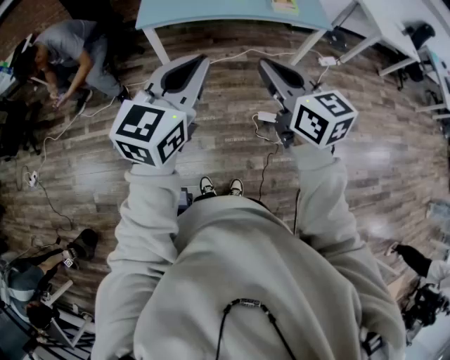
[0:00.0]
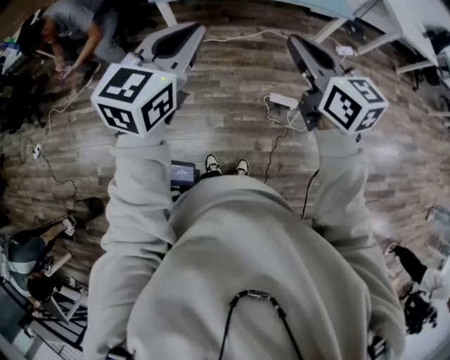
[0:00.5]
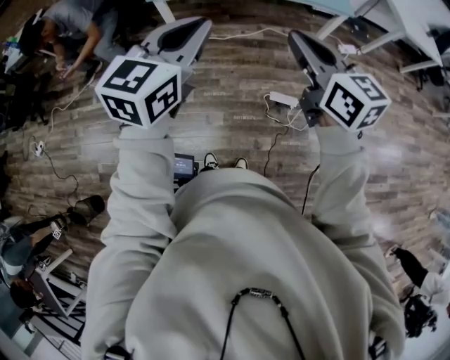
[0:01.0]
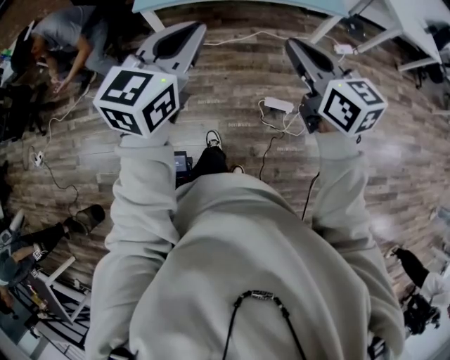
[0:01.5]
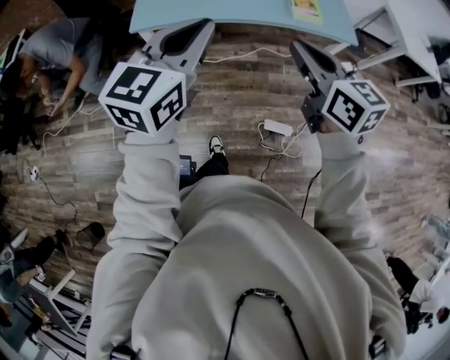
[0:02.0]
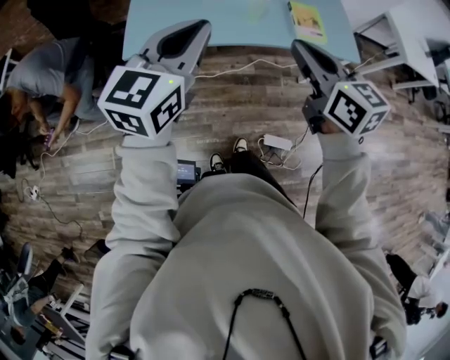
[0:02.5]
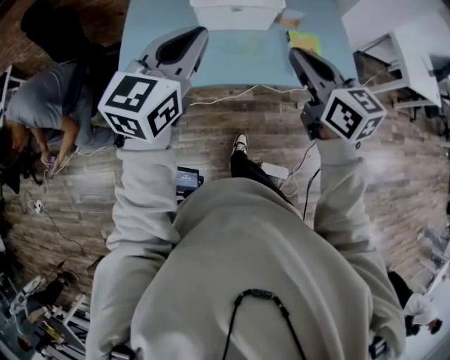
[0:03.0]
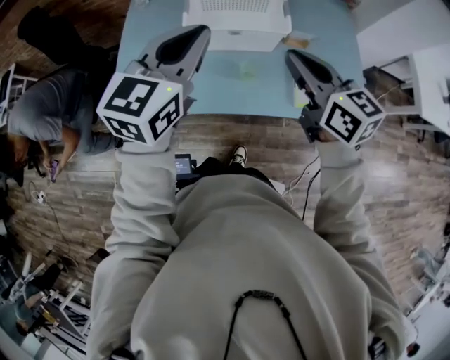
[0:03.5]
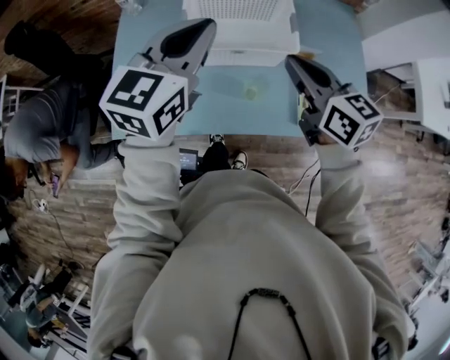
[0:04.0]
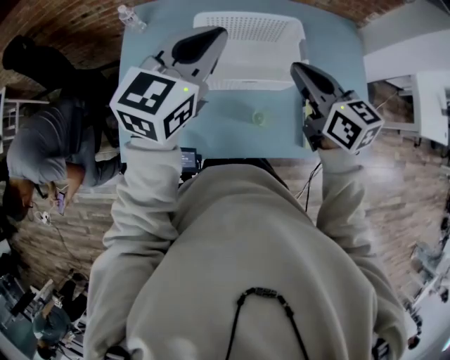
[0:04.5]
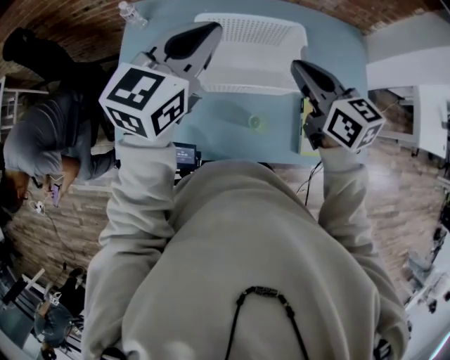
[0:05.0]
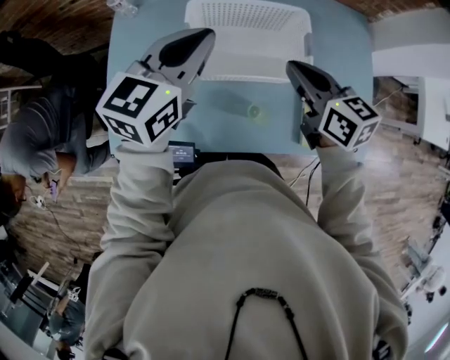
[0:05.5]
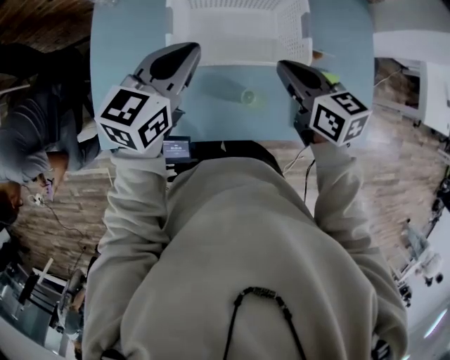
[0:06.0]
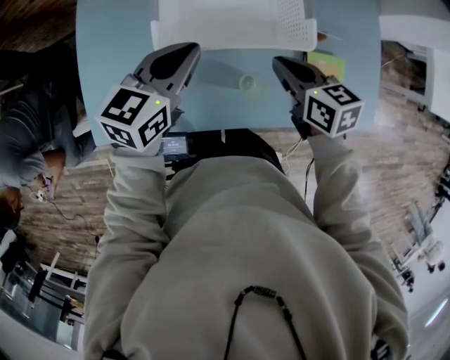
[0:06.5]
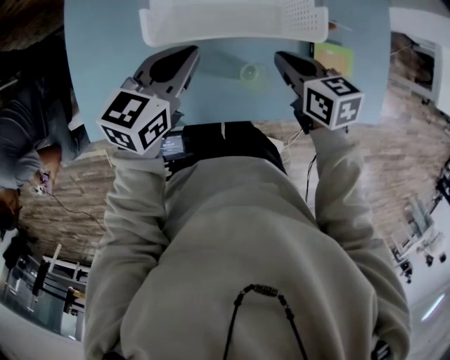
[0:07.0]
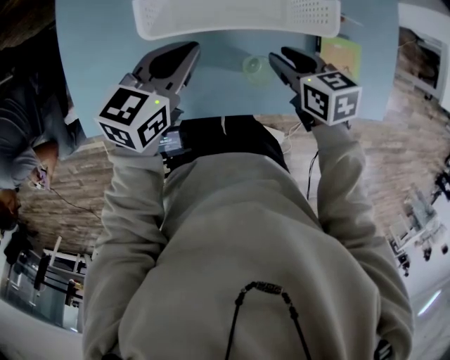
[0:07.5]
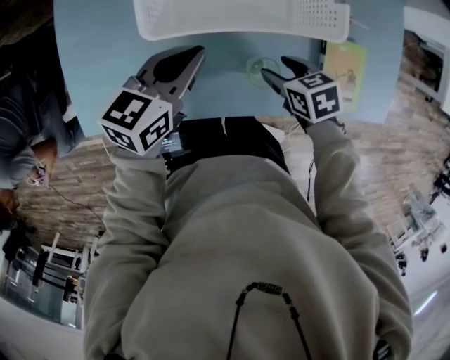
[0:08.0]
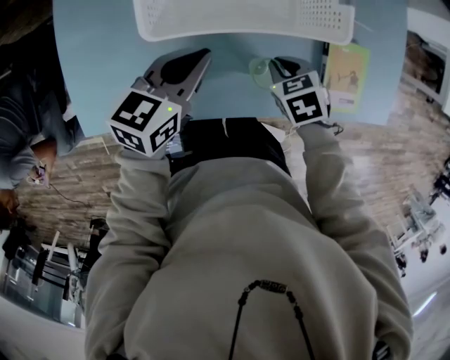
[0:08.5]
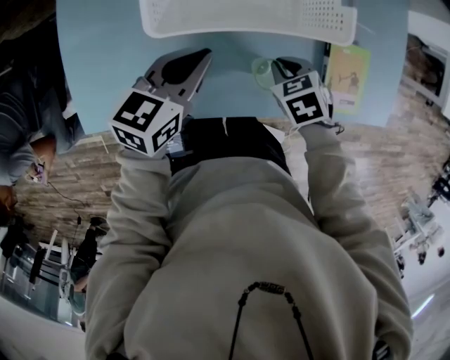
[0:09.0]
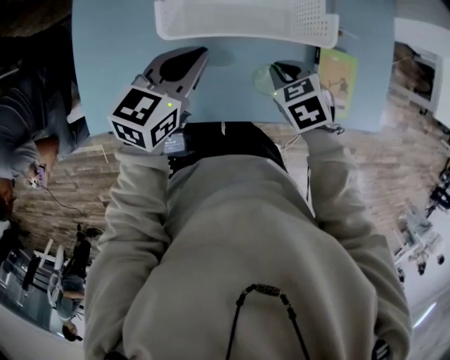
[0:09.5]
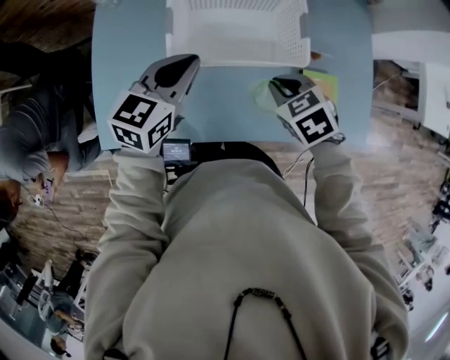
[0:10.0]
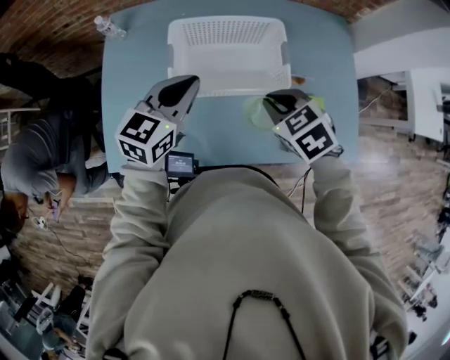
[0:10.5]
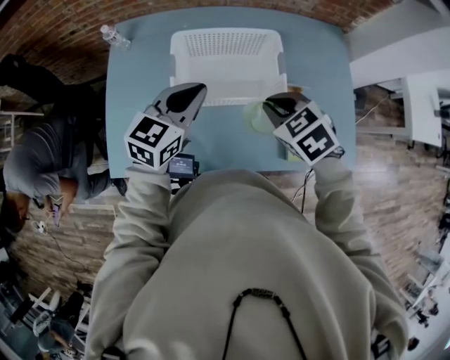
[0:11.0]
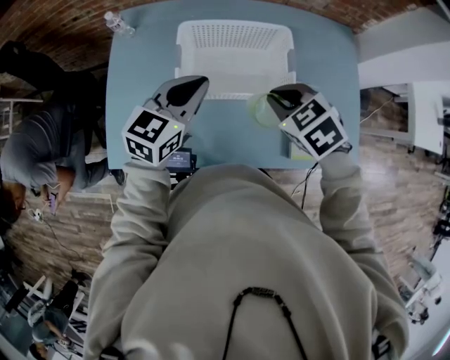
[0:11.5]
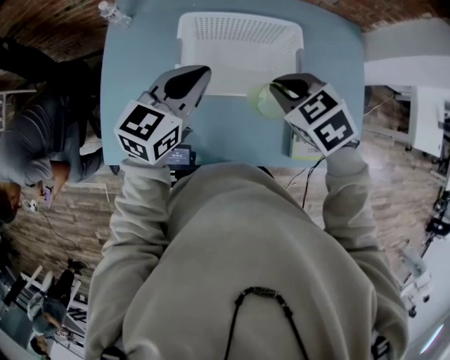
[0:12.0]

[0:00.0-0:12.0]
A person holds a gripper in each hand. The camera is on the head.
0:00.0 to 0:02.0: Both grippers travel together forward, some 25 cm.
0:02.0 to 0:04.0: The pair of grippers is taken forward, roughly 60 cm.
0:04.0 to 0:06.0: The two grippers go some 15 cm downward and forward.
0:06.0 to 0:08.0: The left gripper shifts about 15 cm downward. The right gripper moves downward, about 20 cm, rotates approximately 30 degrees, and opens its fingers.
0:08.0 to 0:10.0: The grippers both shift upward by approximately 15 cm. The right gripper rotates roughly 30 degrees, and closes.
0:10.0 to 0:12.0: Both grippers move upward, roughly 10 cm.

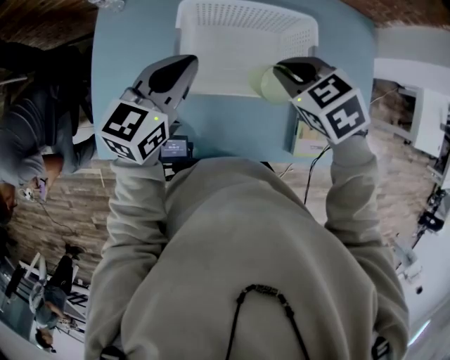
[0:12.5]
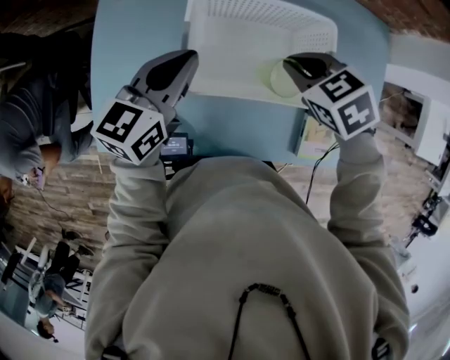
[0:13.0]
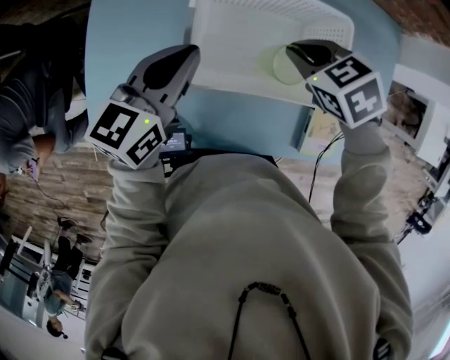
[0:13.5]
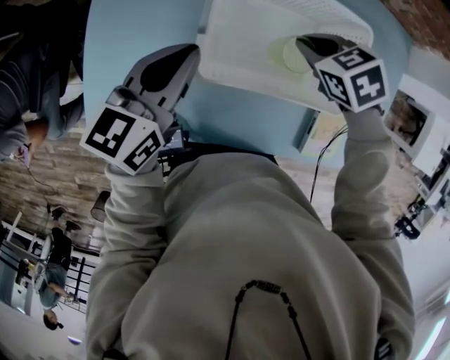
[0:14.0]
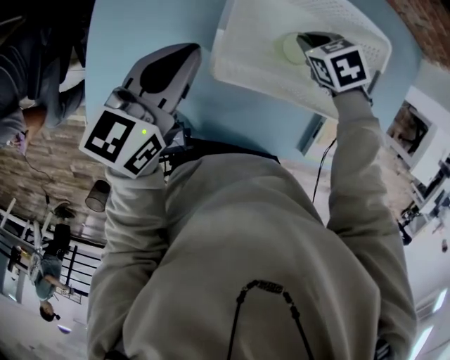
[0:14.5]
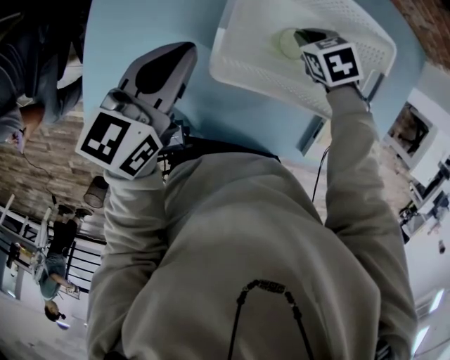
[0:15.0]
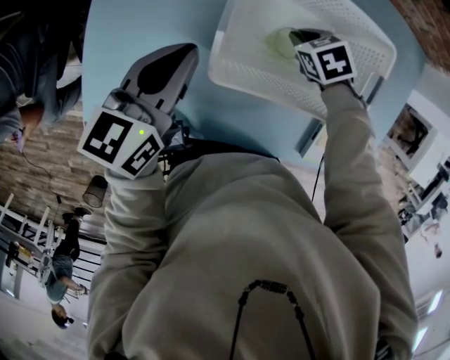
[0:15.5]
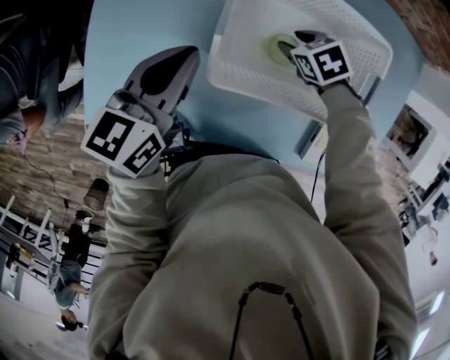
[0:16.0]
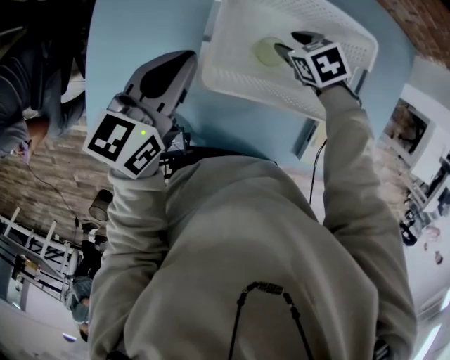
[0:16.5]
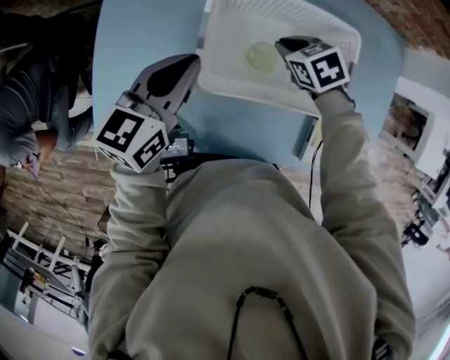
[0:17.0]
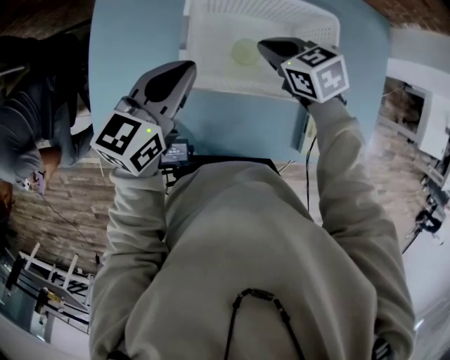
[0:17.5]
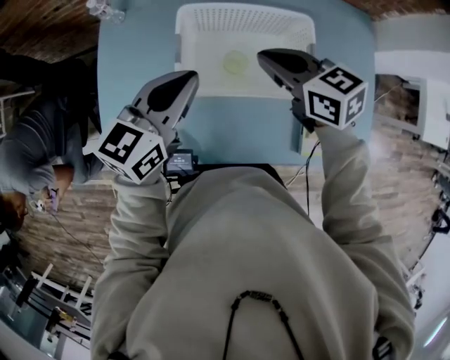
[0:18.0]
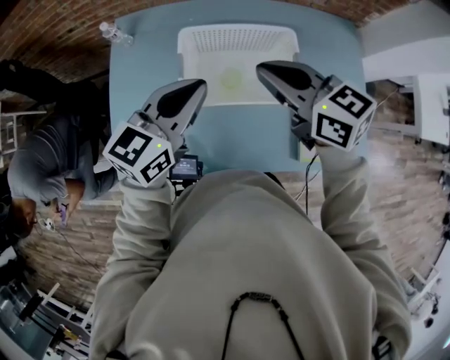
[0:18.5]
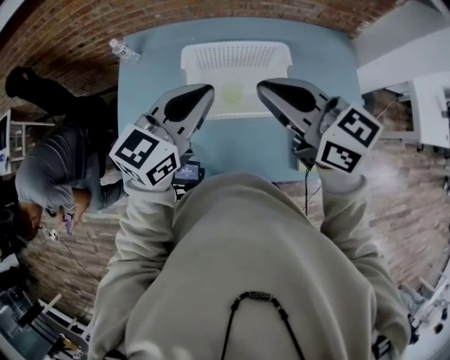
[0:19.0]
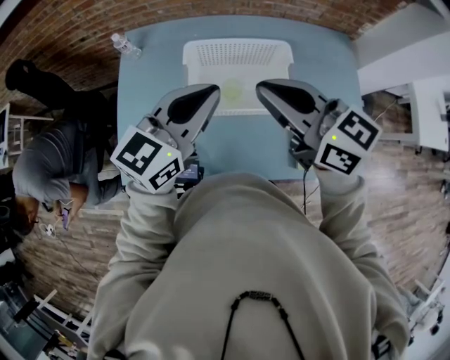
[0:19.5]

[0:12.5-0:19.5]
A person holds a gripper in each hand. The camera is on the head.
0:12.5 to 0:14.5: The right gripper travels downward by some 20 cm, while the left gripper shifts some 10 cm to the left and downward.
0:14.5 to 0:16.0: The right gripper opens.
0:16.0 to 0:17.5: The left gripper shifts by some 5 cm. Meanwhile the right gripper moves upward, approximately 15 cm, swivels about 30 degrees, and closes.
0:17.5 to 0:19.5: The left gripper goes roughly 20 cm upward, backward and to the right, and changes its angle by approximately 20 degrees. Meanwhile the right gripper shifts about 35 cm upward and backward, and tilts its fingers some 40 degrees upward.

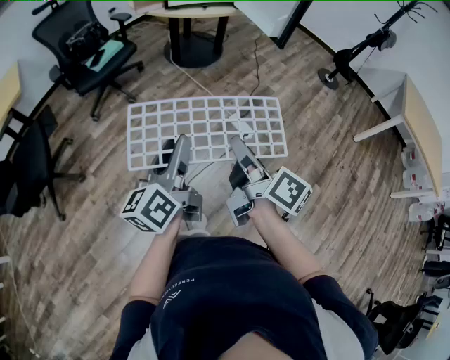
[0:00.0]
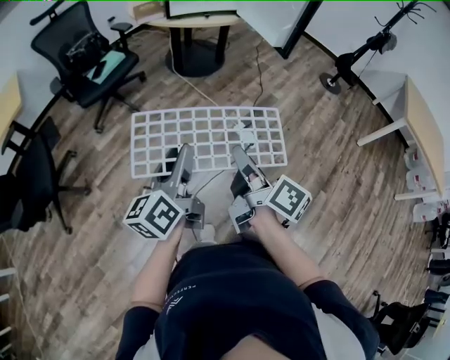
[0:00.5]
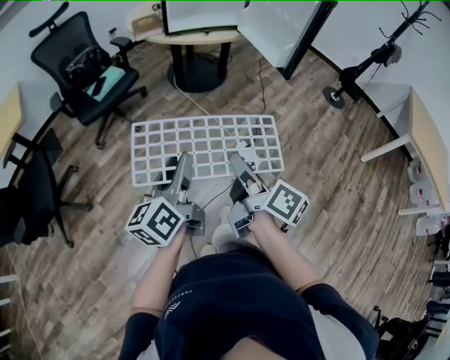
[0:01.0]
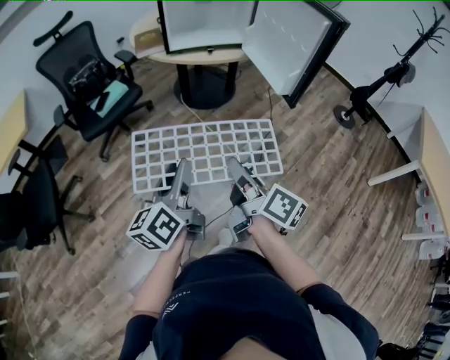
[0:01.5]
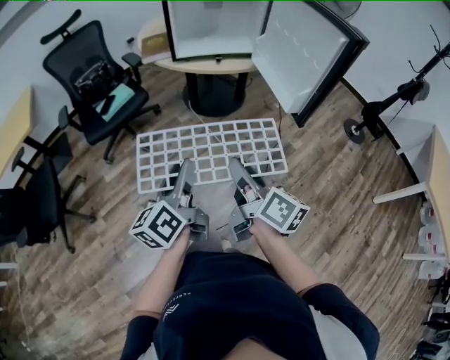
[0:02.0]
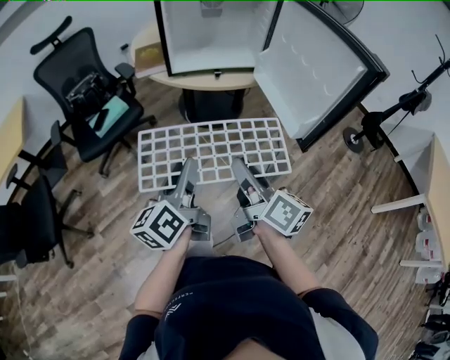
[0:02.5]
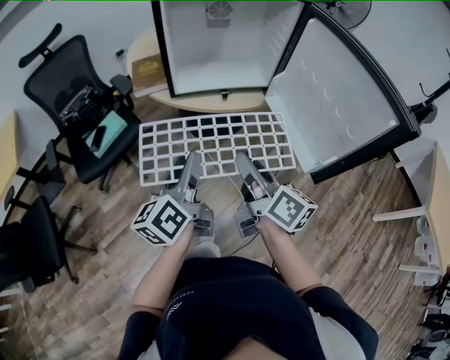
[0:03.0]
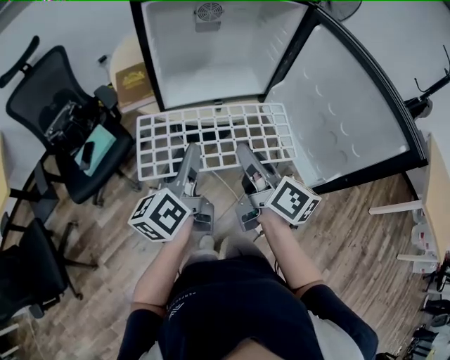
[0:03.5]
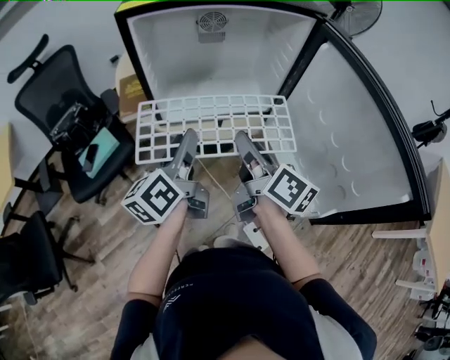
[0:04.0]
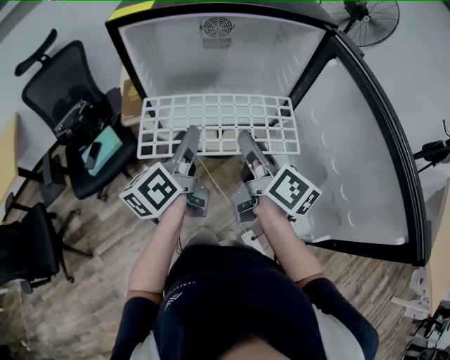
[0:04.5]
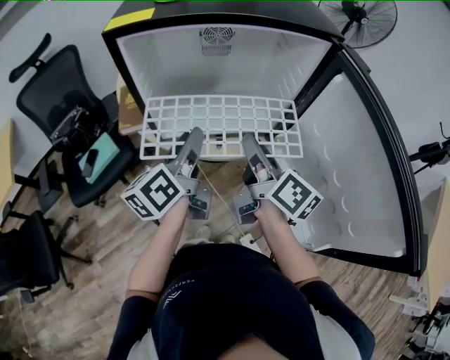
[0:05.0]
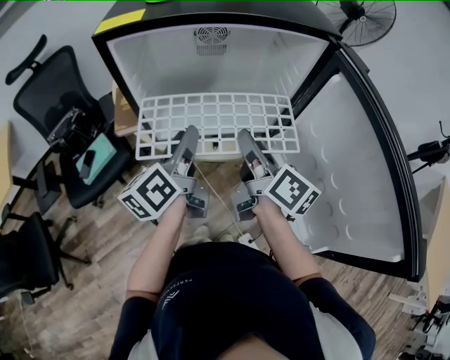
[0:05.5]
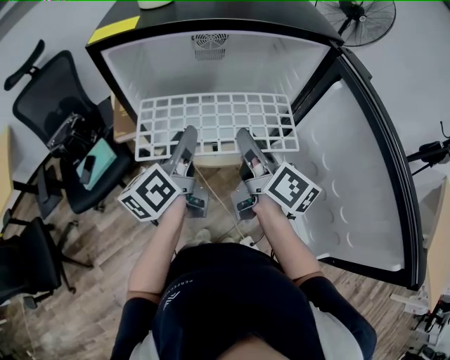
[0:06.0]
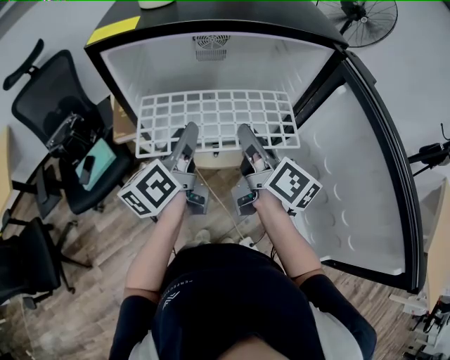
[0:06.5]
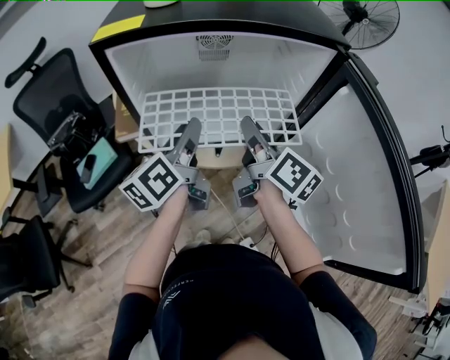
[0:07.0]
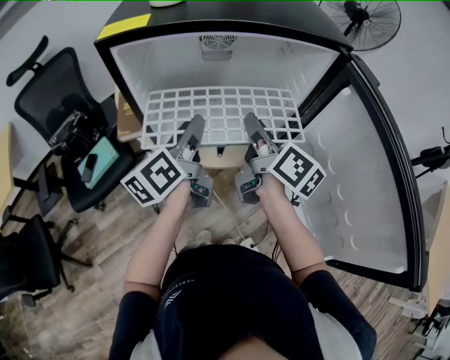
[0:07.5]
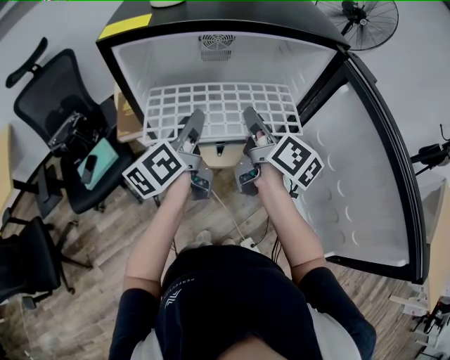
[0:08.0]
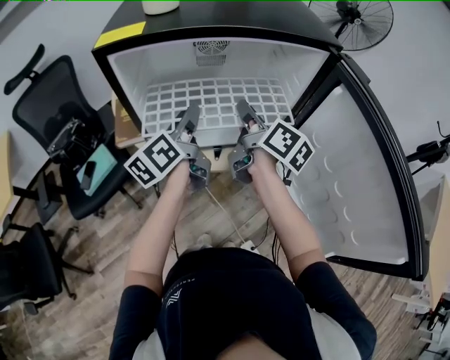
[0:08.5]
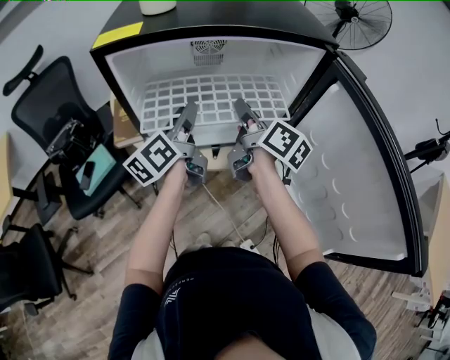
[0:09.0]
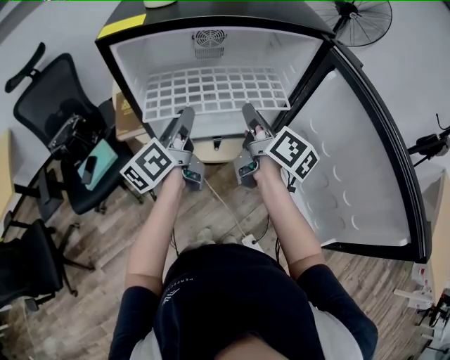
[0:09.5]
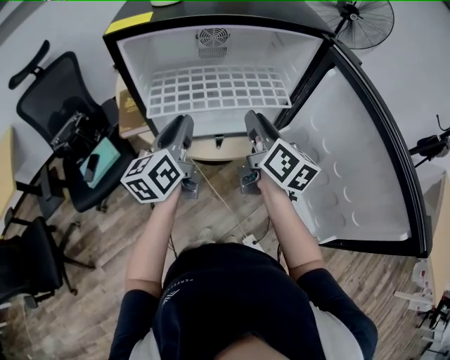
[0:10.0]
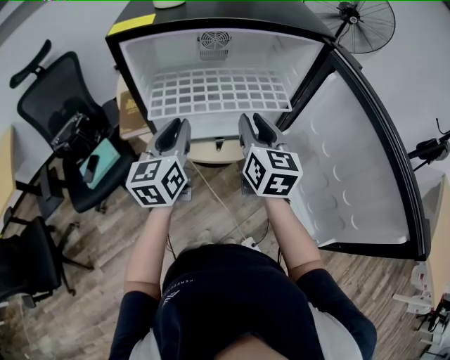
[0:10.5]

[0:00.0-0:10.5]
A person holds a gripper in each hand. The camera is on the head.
0:00.0 to 0:02.0: Both grippers move forward, approximately 30 cm.
0:02.0 to 0:04.0: Both grippers are carried forward, about 40 cm.
0:04.0 to 0:06.5: The two grippers go roughly 10 cm forward.
0:06.5 to 0:08.5: The two grippers go some 5 cm forward.
0:08.5 to 0:10.5: Both grippers travel together backward, about 5 cm. The right gripper twists some 40 degrees counterclockwise, seen from behind. The left gripper swivels about 40 degrees.
